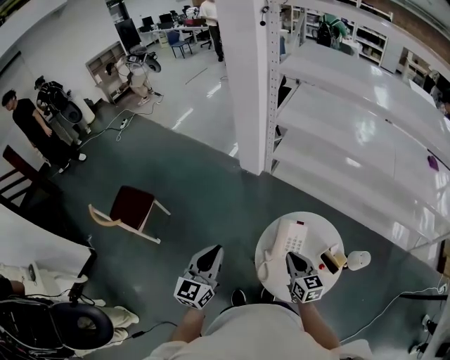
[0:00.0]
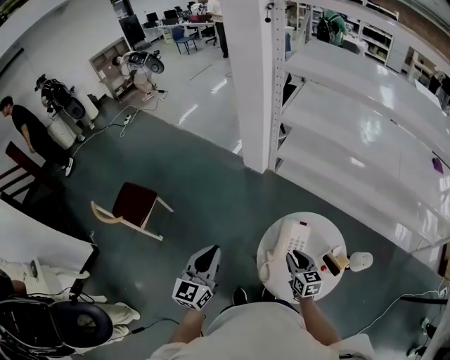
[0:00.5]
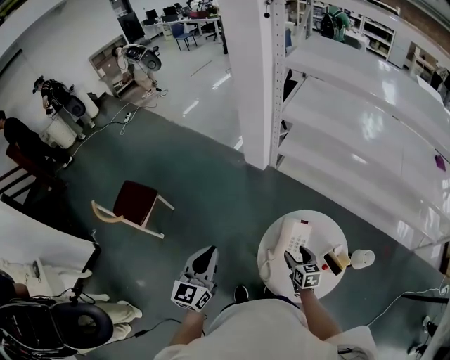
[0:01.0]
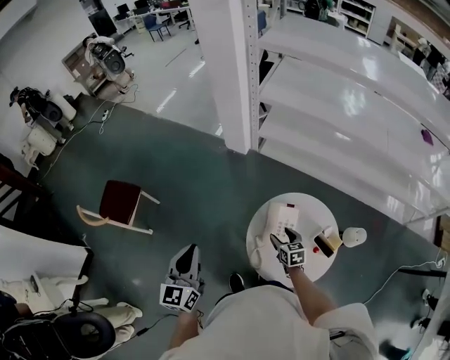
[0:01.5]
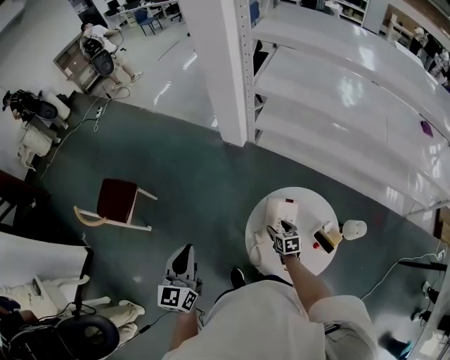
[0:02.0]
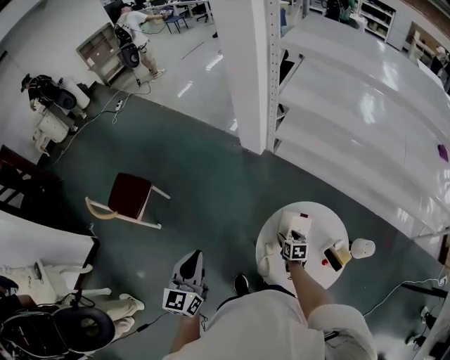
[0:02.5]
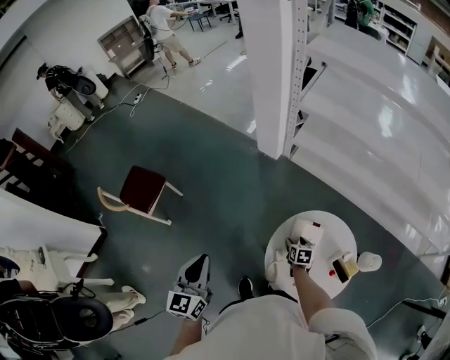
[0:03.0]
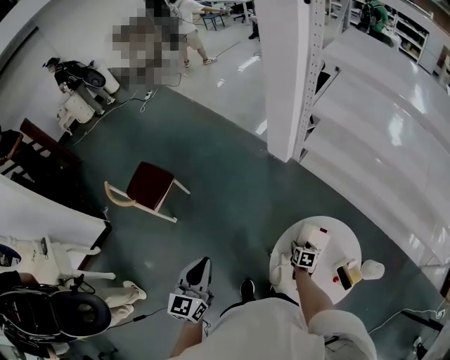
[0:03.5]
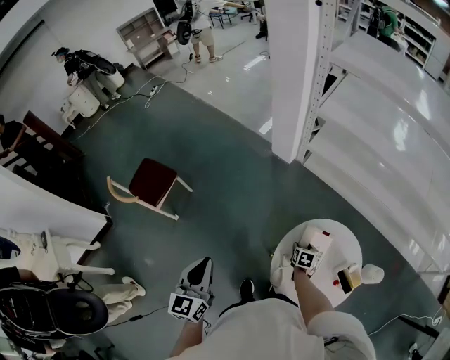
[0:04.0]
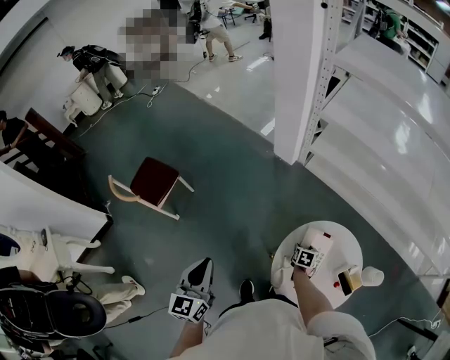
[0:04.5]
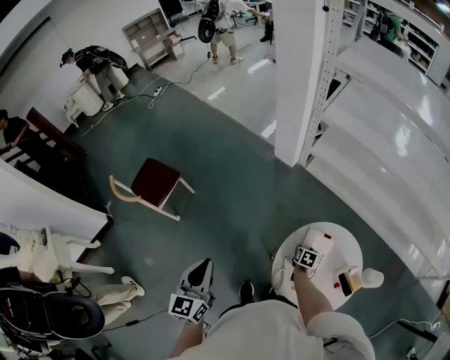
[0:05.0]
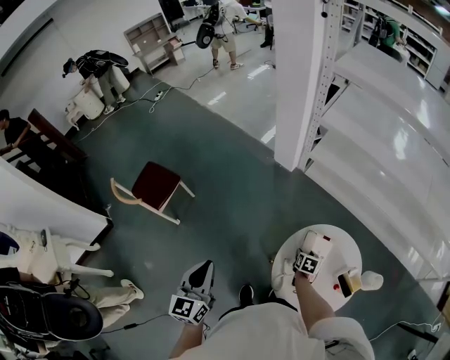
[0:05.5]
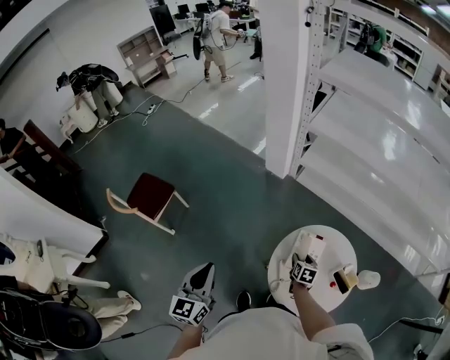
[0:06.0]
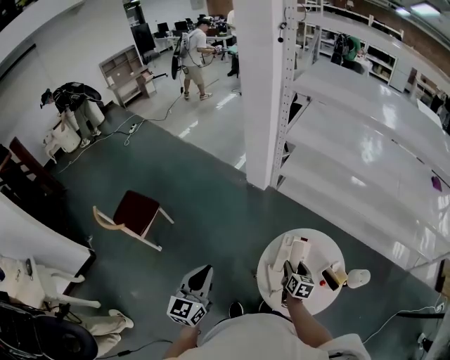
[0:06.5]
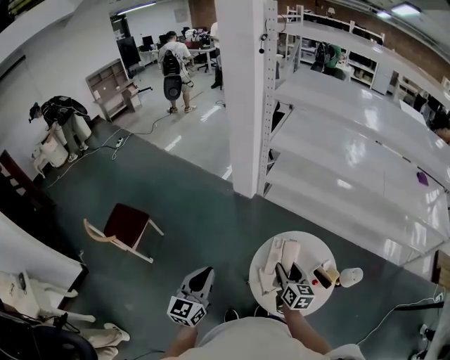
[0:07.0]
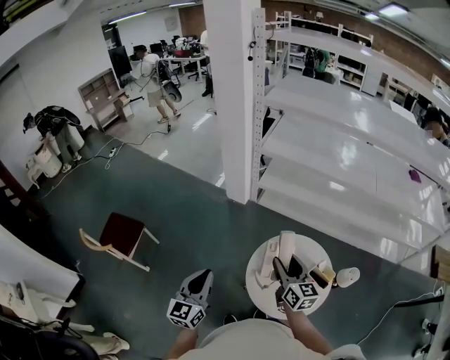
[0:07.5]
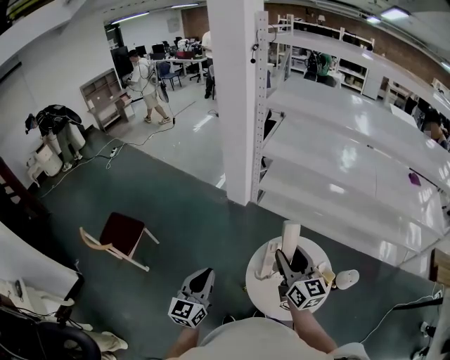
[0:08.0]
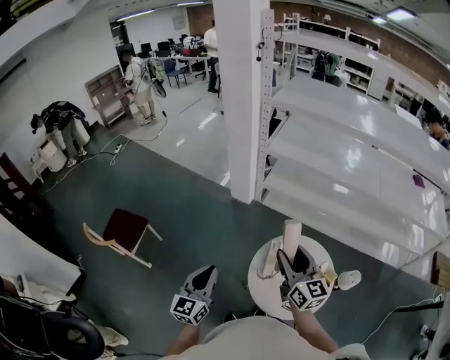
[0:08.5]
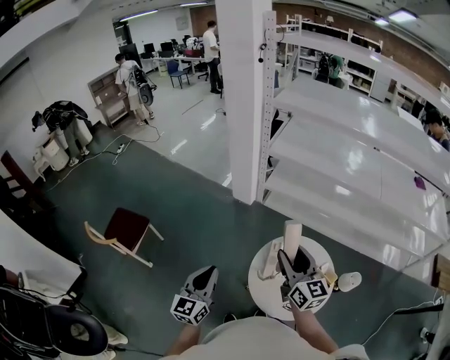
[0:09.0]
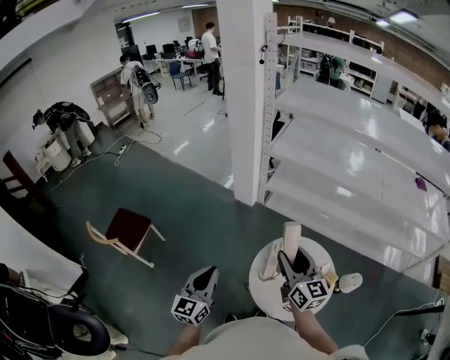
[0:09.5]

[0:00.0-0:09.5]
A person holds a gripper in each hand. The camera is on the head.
0:00.0 to 0:02.0: The right gripper heads downward and forward, covering some 20 cm, rotates roughly 30 degrees, and opens up.
0:02.0 to 0:04.0: The left gripper shifts about 5 cm to the left. The right gripper shifts by approximately 5 cm.
0:04.0 to 0:05.5: The grippers make only small movements.
0:05.5 to 0:07.5: The left gripper is displaced to the right by roughly 10 cm, and changes its angle by approximately 20 degrees, while the right gripper travels upward by approximately 35 cm, and angles its fingers upward, by about 50 degrees.
0:07.5 to 0:09.5: The right gripper is displaced upward by about 10 cm.

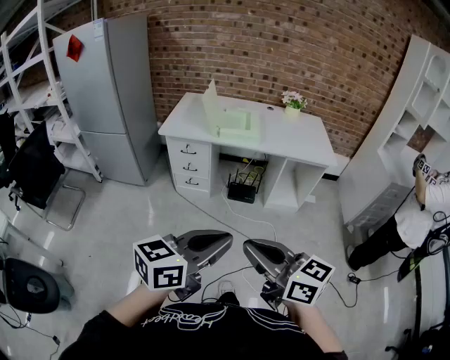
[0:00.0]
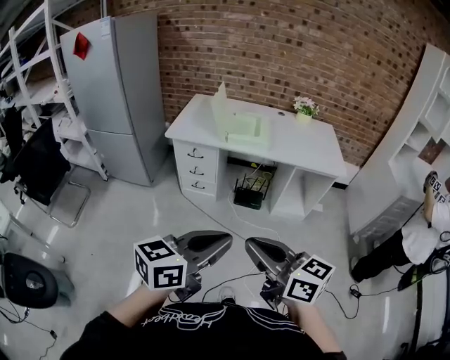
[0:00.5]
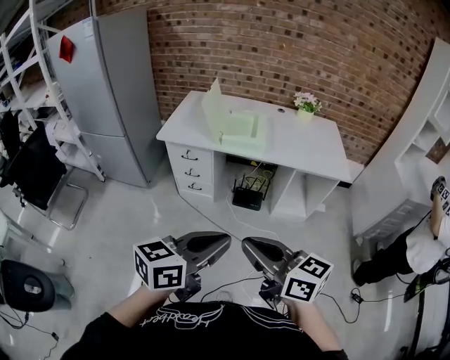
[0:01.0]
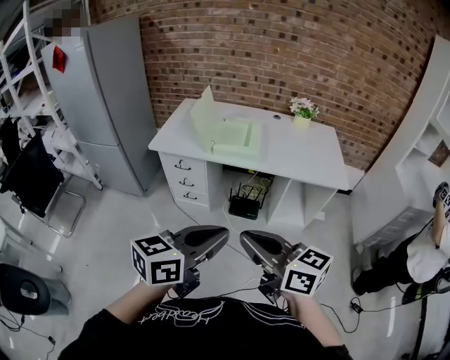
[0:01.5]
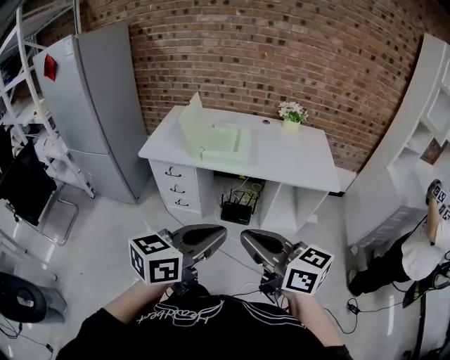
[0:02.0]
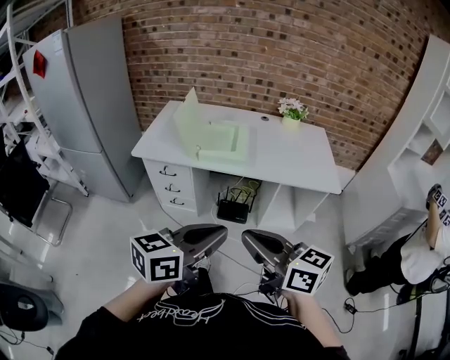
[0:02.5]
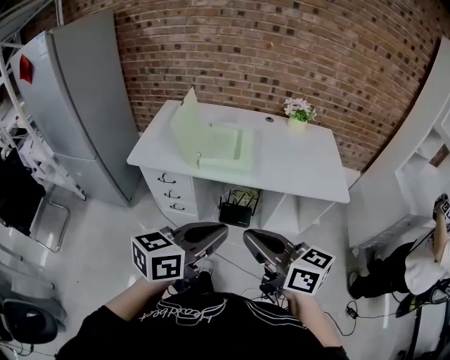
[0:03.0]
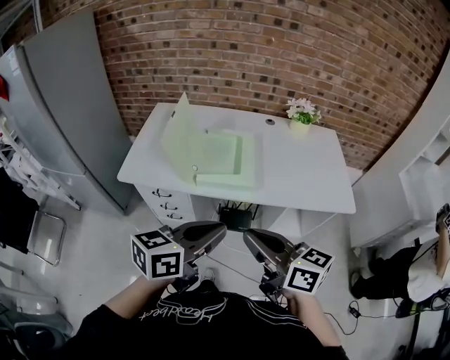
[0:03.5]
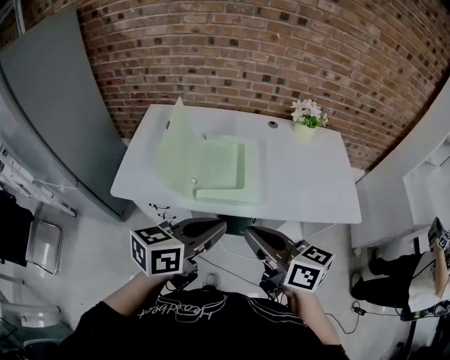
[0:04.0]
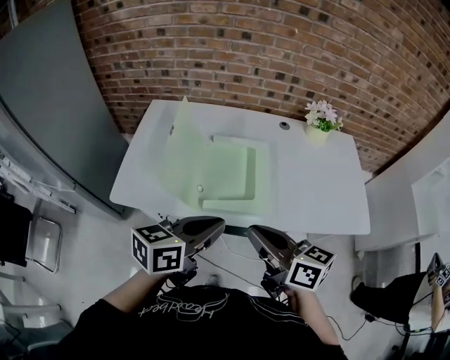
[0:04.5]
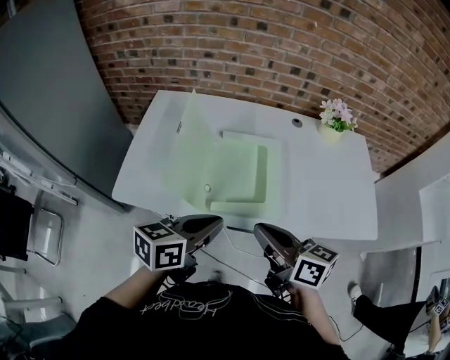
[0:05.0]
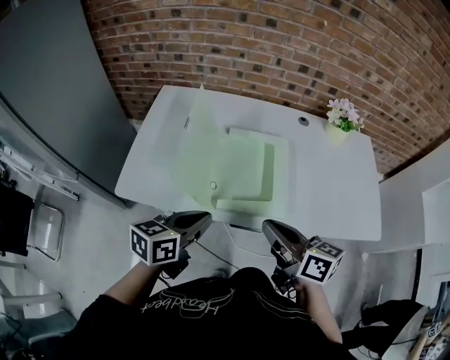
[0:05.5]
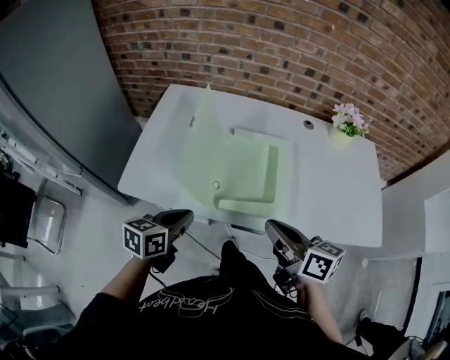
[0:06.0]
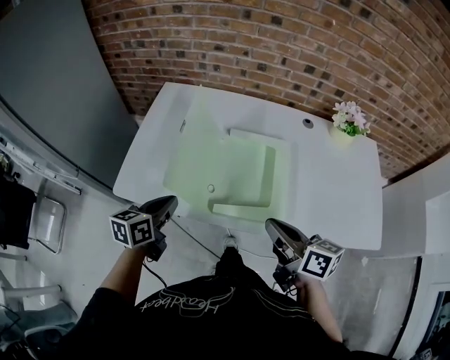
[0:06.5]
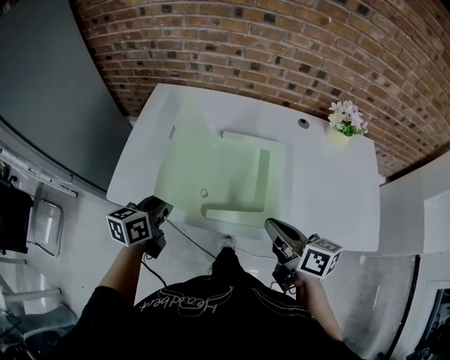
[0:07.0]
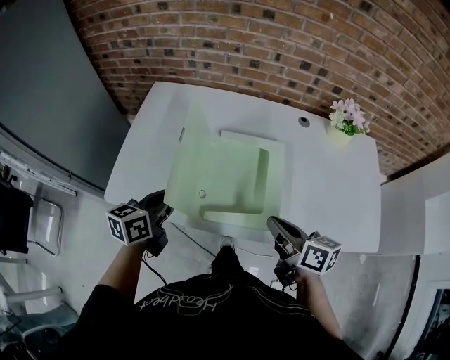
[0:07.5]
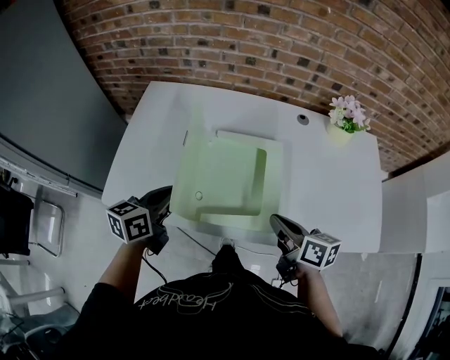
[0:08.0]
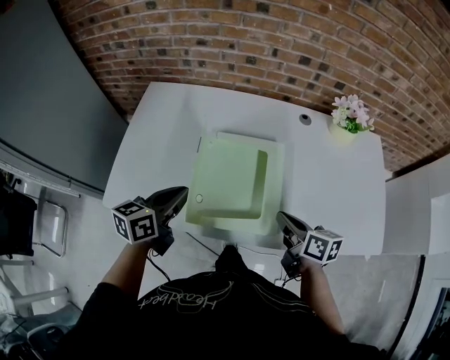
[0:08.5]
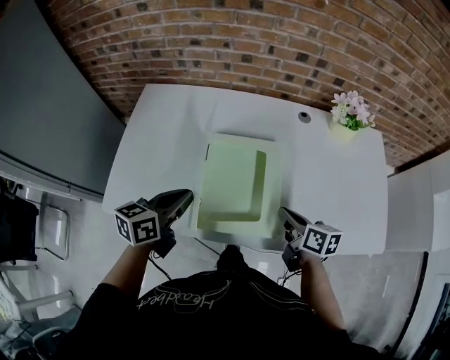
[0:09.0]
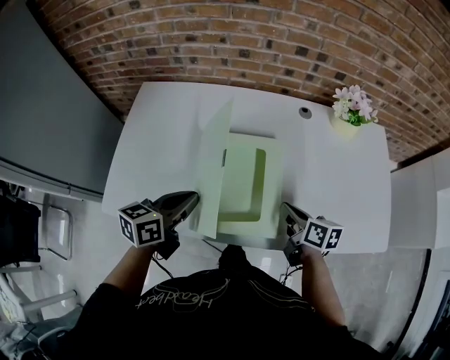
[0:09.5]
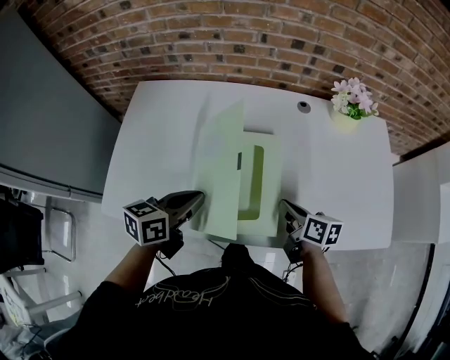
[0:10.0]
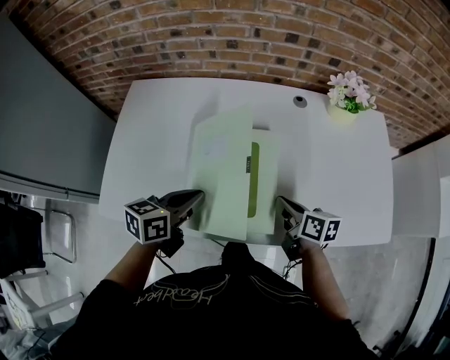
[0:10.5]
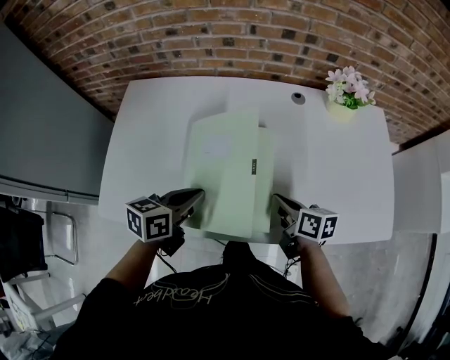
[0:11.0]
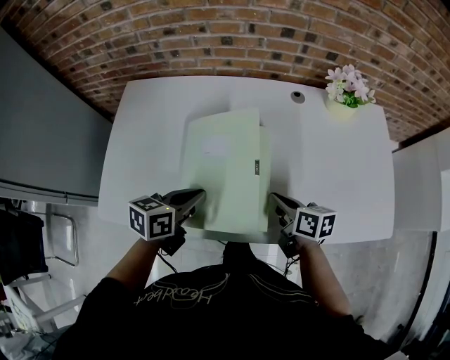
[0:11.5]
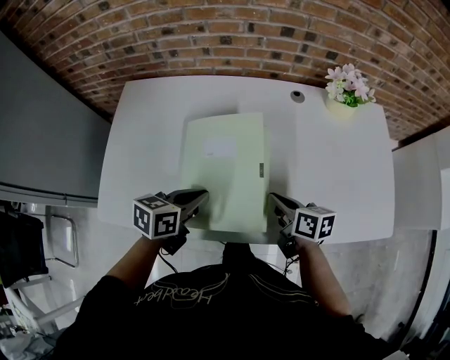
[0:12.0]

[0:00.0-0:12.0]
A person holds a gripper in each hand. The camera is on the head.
0:00.0 to 0:02.0: Both grippers travel together forward and to the right, roughly 20 cm.
0:02.0 to 0:04.0: The grippers both shift forward by roughly 35 cm.
0:04.0 to 0:06.0: The left gripper shifts approximately 25 cm to the left, downward and forward, and changes its angle by approximately 20 degrees. The right gripper heads forward and downward, covering some 15 cm.
0:06.0 to 0:08.0: The left gripper moves forward, roughly 10 cm. Meanwhile the right gripper goes about 15 cm to the right, forward and downward.
0:08.0 to 0:10.0: The left gripper goes roughly 10 cm to the right. Meanwhile the right gripper shifts about 10 cm downward and forward.
0:10.0 to 0:12.0: The left gripper shifts by roughly 5 cm.

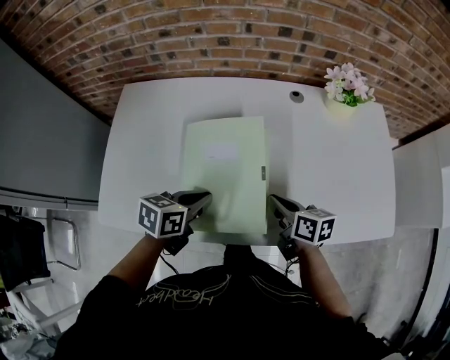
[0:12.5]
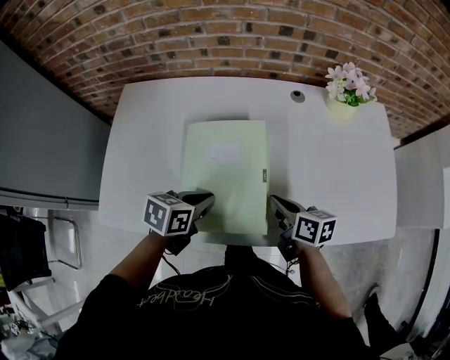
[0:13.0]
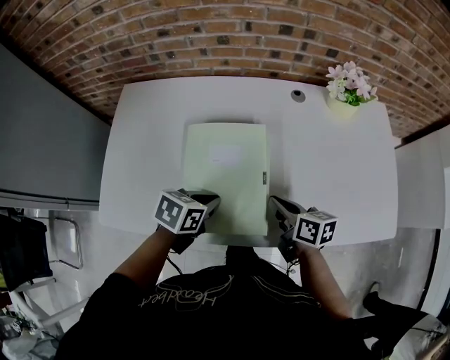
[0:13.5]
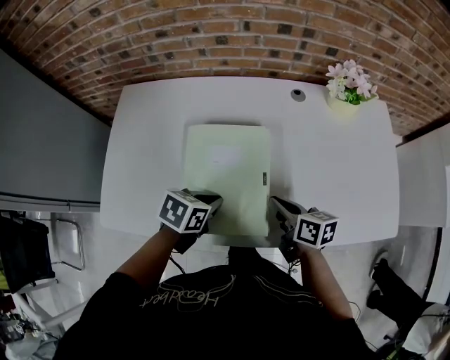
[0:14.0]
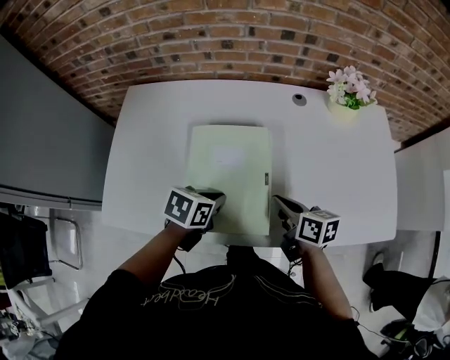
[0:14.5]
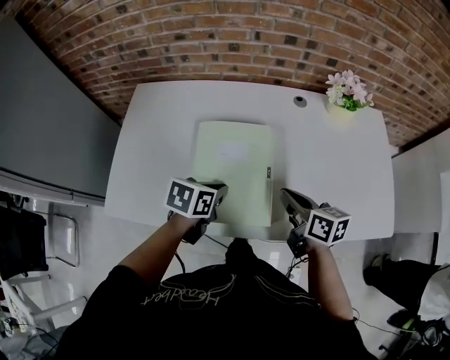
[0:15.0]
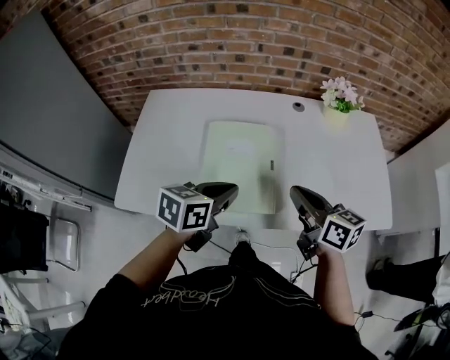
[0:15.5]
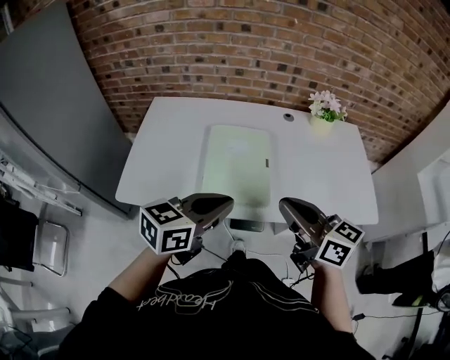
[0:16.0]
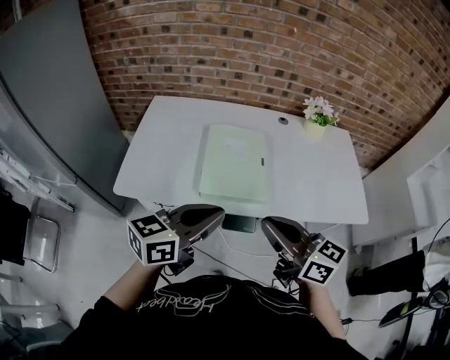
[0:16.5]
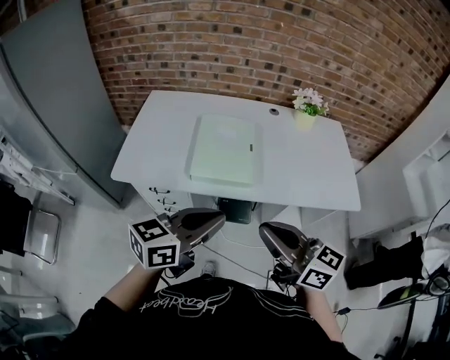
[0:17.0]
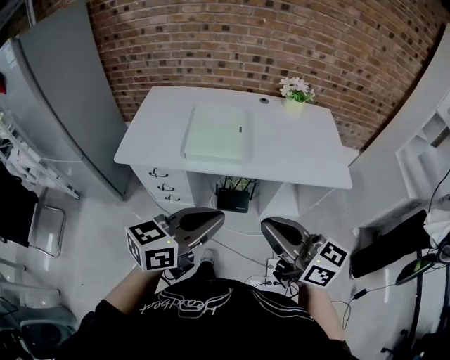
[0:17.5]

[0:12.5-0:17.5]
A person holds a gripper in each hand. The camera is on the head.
0:12.5 to 0:15.0: The right gripper heads upward, covering approximately 5 cm.
0:15.0 to 0:17.5: Both grippers are carried backward, approximately 40 cm. Both grippers travel together upward, roughly 20 cm. The right gripper rotates approximately 40 degrees, while the left gripper tilts its fingers approximately 40 degrees upward.
